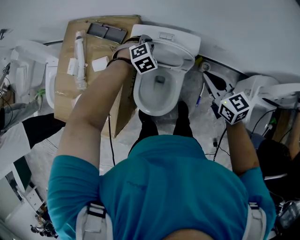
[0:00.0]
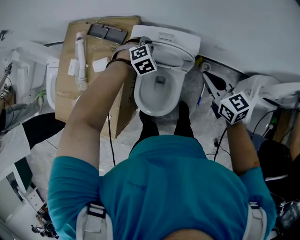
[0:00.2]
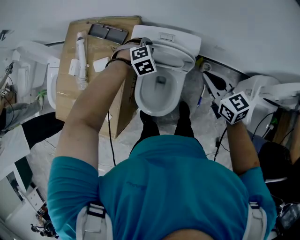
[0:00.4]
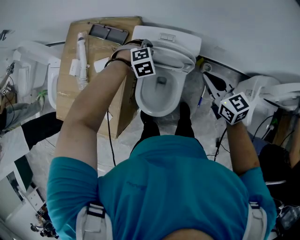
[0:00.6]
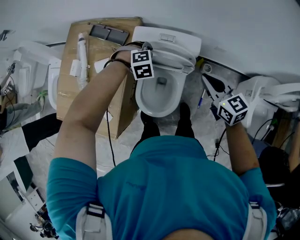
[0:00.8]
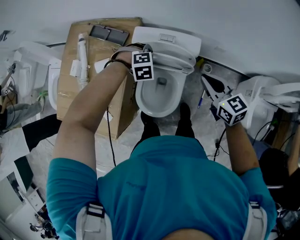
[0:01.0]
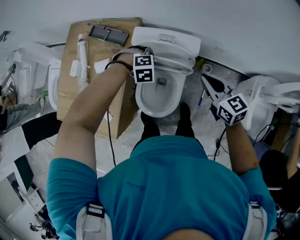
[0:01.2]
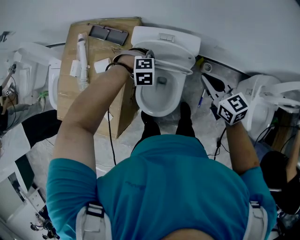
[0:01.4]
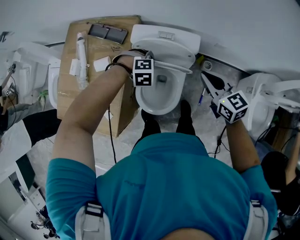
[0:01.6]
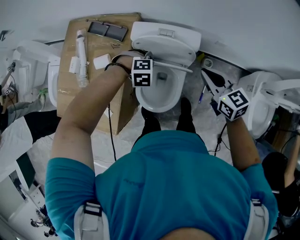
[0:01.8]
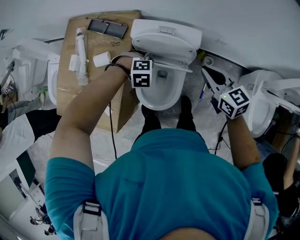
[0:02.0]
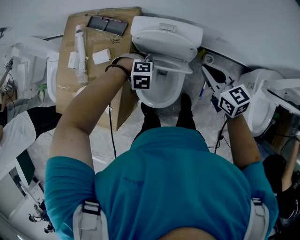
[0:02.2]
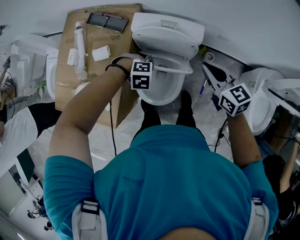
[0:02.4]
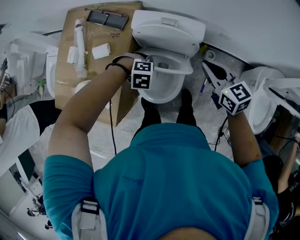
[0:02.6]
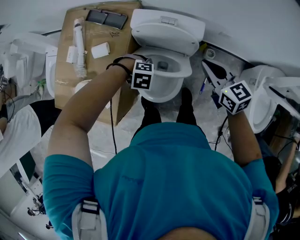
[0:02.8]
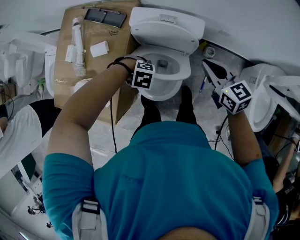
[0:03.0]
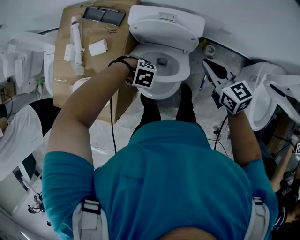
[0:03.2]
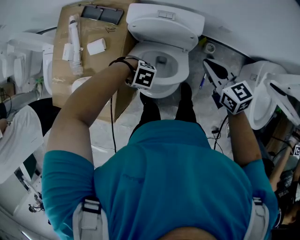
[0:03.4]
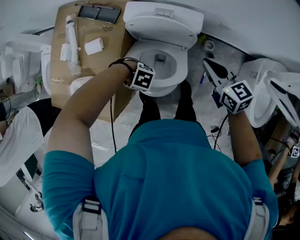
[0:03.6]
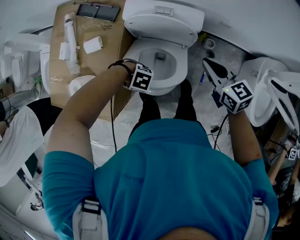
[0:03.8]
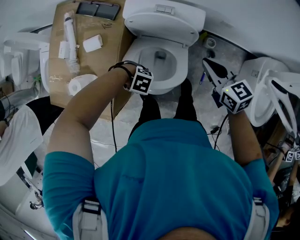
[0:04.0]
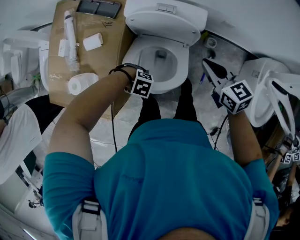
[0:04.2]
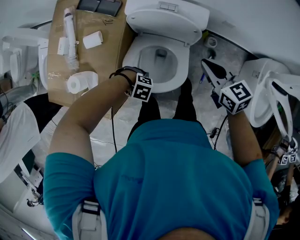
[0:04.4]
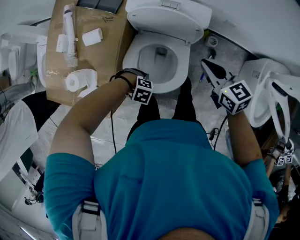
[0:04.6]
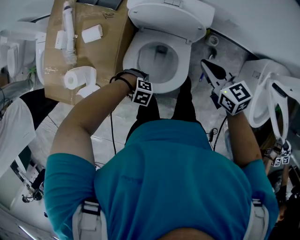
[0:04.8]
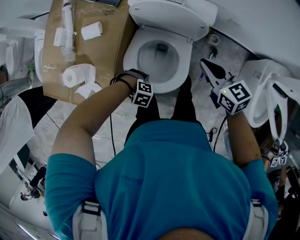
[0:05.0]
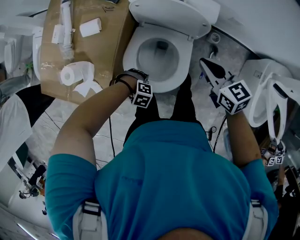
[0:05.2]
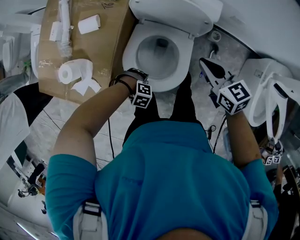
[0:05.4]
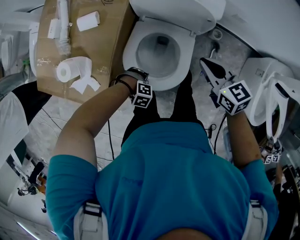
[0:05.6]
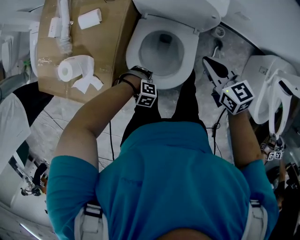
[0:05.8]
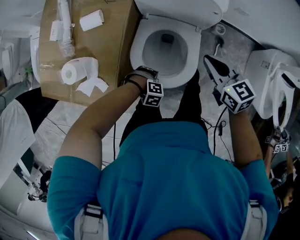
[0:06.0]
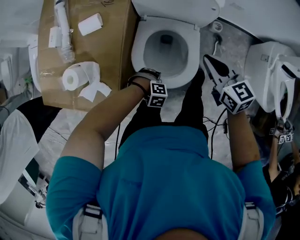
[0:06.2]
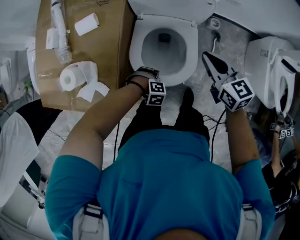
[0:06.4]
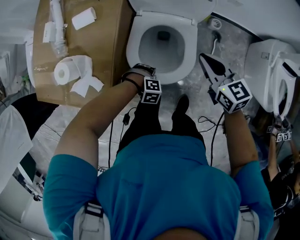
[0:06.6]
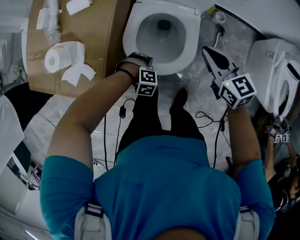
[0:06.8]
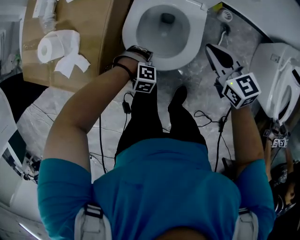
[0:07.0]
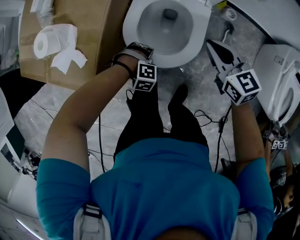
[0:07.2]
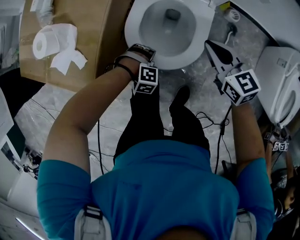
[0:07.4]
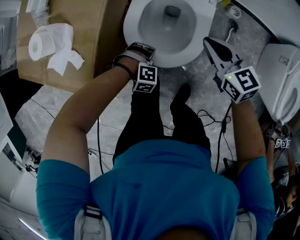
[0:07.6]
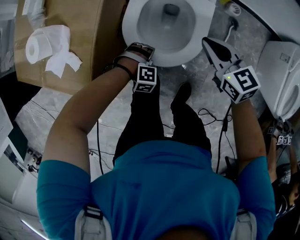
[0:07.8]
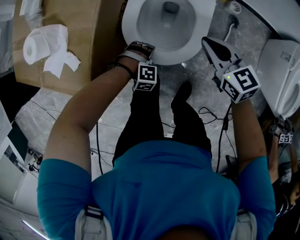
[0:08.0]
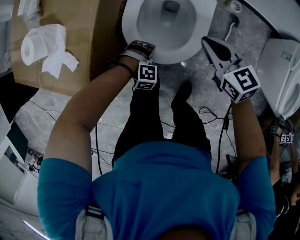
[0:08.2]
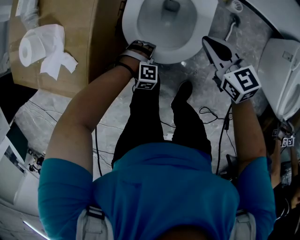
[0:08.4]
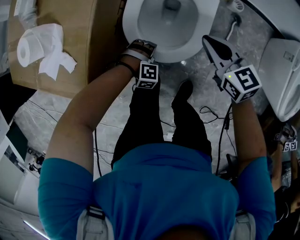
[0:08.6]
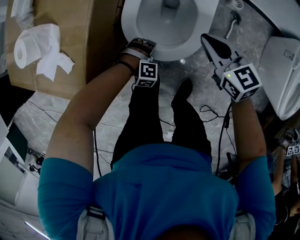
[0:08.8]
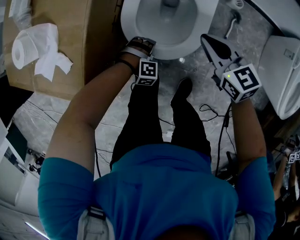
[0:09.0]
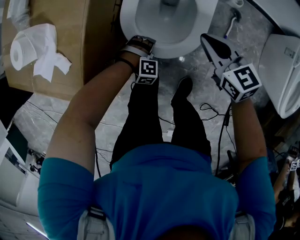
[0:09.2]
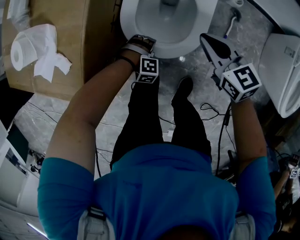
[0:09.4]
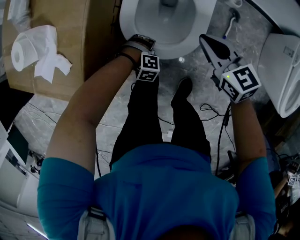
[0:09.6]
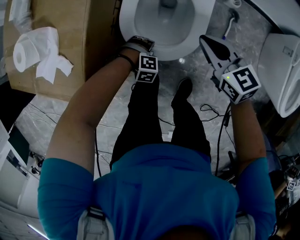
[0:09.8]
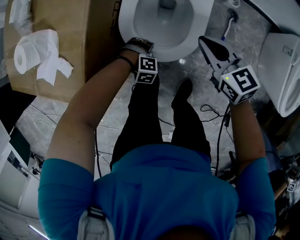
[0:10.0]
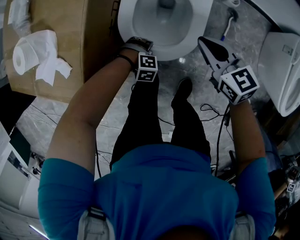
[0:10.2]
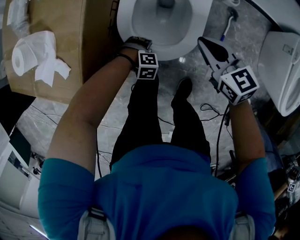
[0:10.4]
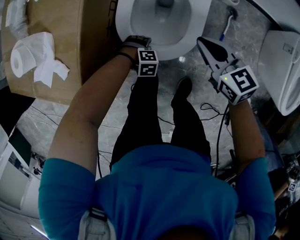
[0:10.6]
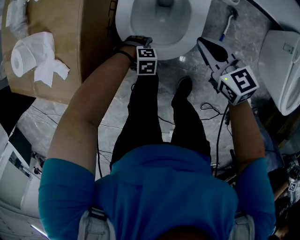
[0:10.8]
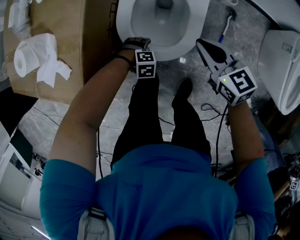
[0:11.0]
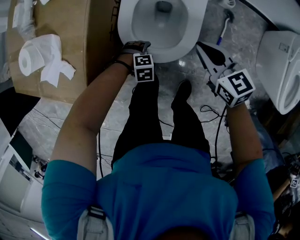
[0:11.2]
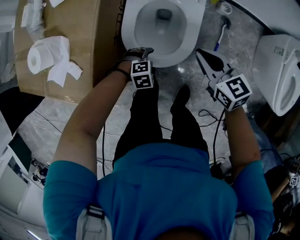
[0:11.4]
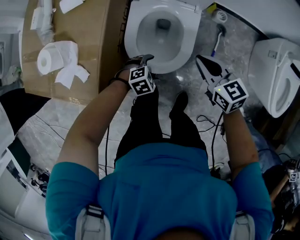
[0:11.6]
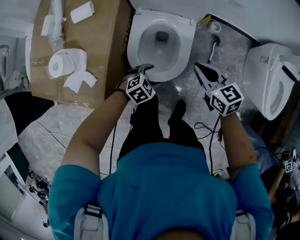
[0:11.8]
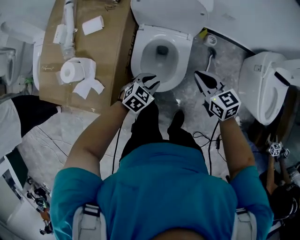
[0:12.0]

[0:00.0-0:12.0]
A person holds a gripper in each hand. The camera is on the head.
0:00.0 to 0:01.6: The left gripper moves roughly 10 cm, and rotates roughly 30 degrees.
0:01.6 to 0:03.0: The left gripper changes place by approximately 15 cm, and changes its angle by some 30 degrees.
0:03.0 to 0:04.4: The right gripper is displaced downward by roughly 5 cm. The left gripper shifts by roughly 15 cm.
0:04.4 to 0:06.0: The left gripper goes roughly 10 cm downward; the right gripper shifts by about 10 cm.
0:06.0 to 0:07.6: The two grippers go approximately 15 cm downward.
0:07.6 to 0:09.0: The right gripper heads downward, covering roughly 5 cm; the left gripper travels downward by roughly 10 cm.
0:09.0 to 0:10.4: The grippers make only small movements.
0:10.4 to 0:12.0: The right gripper moves upward, about 15 cm, while the left gripper moves upward, approximately 30 cm, tilts its fingers about 40 degrees upward, and closes up.

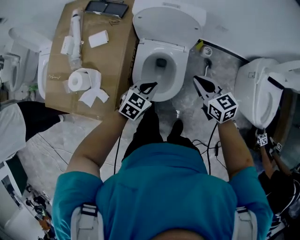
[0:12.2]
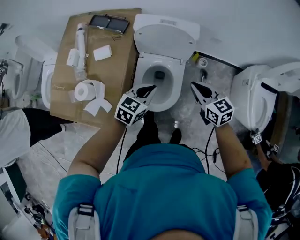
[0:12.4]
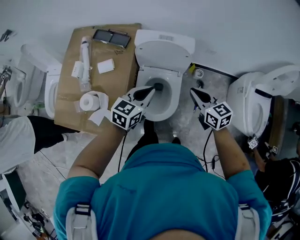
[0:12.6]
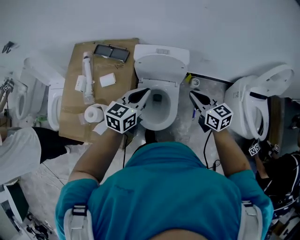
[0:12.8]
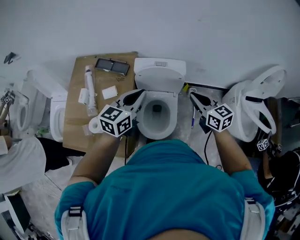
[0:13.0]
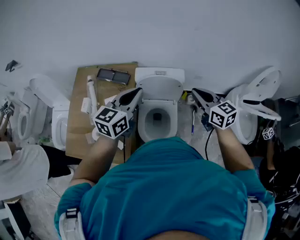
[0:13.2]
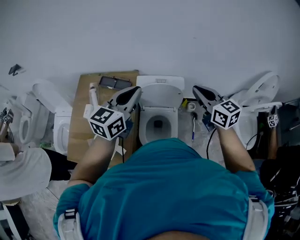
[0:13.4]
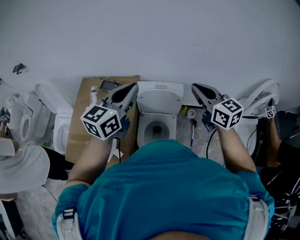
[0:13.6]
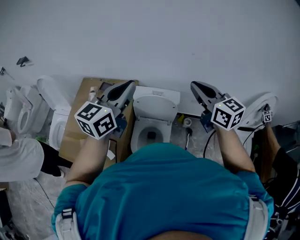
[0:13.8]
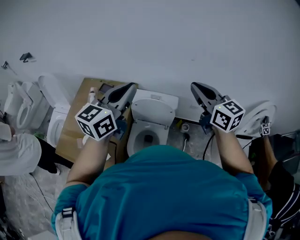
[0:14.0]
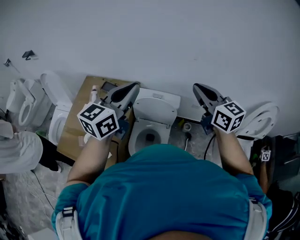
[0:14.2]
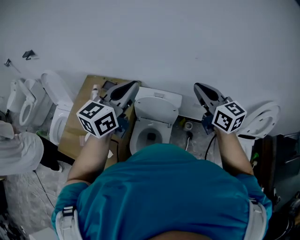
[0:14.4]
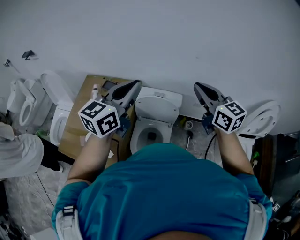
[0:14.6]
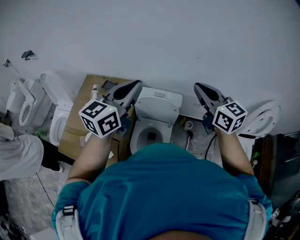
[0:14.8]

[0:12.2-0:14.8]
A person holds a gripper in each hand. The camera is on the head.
0:12.2 to 0:13.4: The grippers both shift upward by approximately 40 cm. The right gripper changes its angle by about 20 degrees; the left gripper tips its fingers upward by some 30 degrees.
0:13.4 to 0:14.8: The left gripper goes approximately 10 cm upward and to the right; the right gripper heads upward, covering approximately 10 cm.

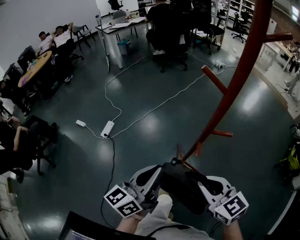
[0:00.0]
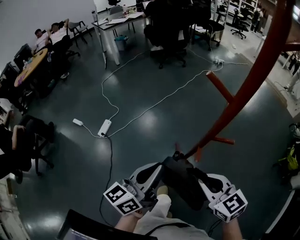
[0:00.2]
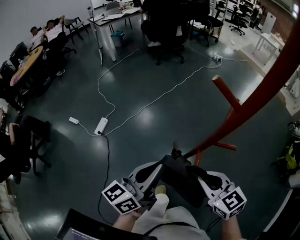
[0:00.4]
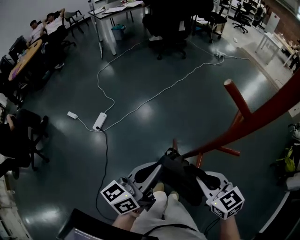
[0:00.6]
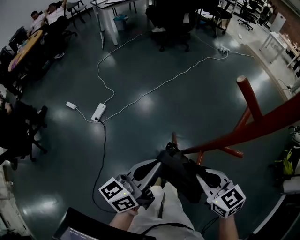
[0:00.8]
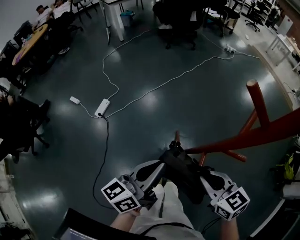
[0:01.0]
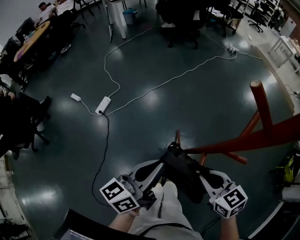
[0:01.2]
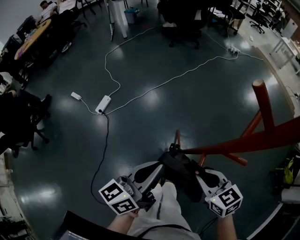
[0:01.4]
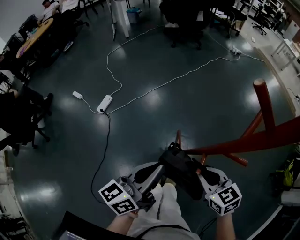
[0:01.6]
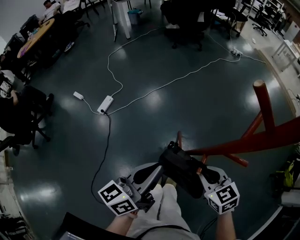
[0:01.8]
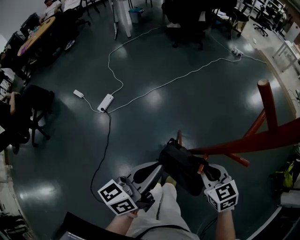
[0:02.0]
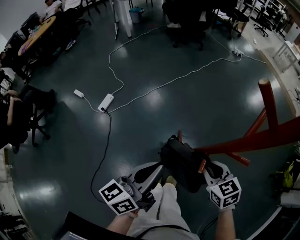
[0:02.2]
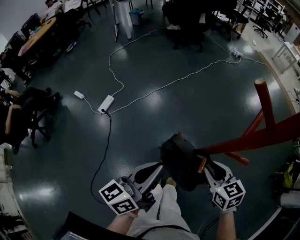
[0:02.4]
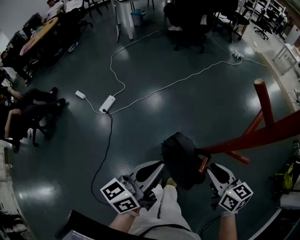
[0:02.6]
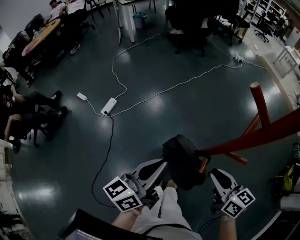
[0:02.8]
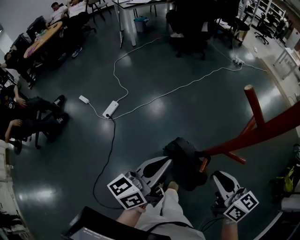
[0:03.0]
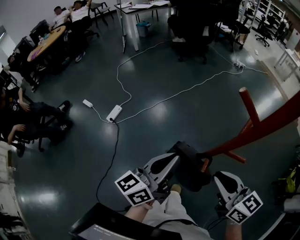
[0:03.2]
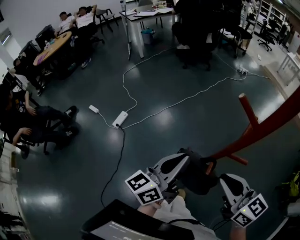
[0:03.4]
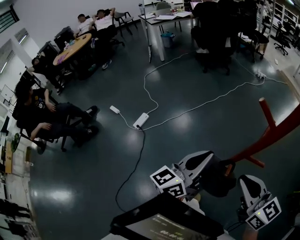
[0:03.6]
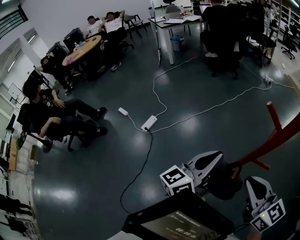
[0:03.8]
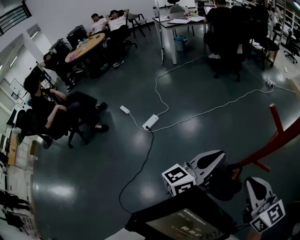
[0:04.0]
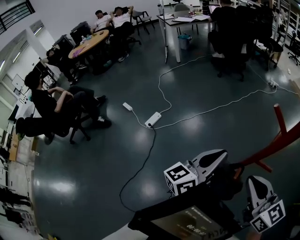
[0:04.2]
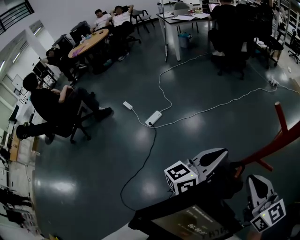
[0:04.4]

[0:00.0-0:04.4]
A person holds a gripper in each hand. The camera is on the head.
0:00.0 to 0:01.4: The grippers both shift forward and downward by roughly 15 cm.
0:01.4 to 0:03.0: The right gripper is displaced upward by about 10 cm, and swivels approximately 30 degrees.
0:03.0 to 0:04.4: The right gripper travels upward and to the left by approximately 15 cm, and rotates approximately 20 degrees; the left gripper shifts approximately 5 cm upward.

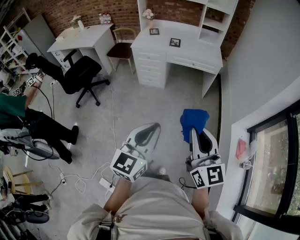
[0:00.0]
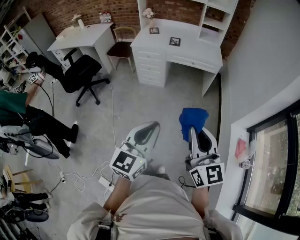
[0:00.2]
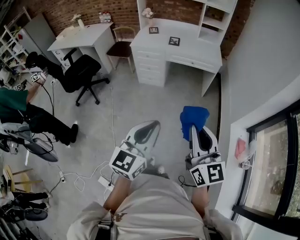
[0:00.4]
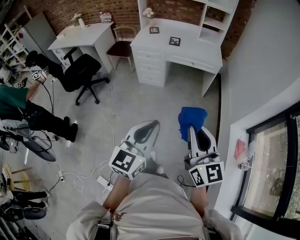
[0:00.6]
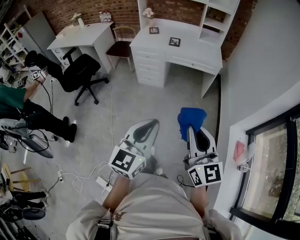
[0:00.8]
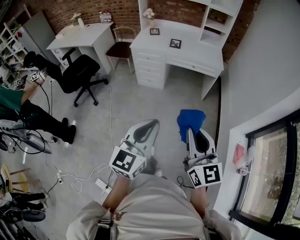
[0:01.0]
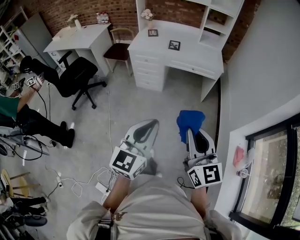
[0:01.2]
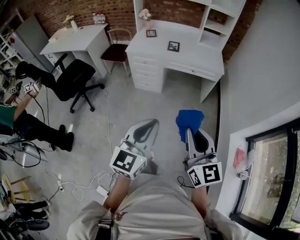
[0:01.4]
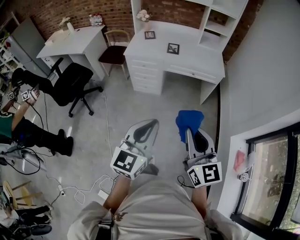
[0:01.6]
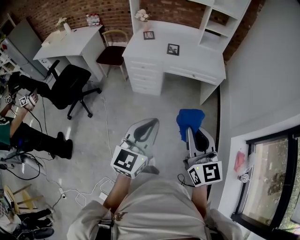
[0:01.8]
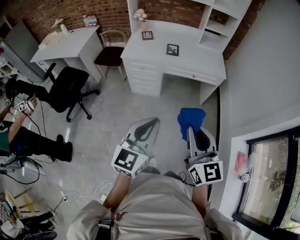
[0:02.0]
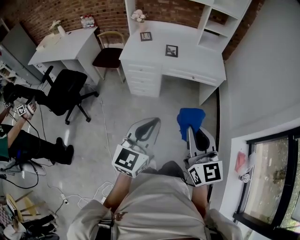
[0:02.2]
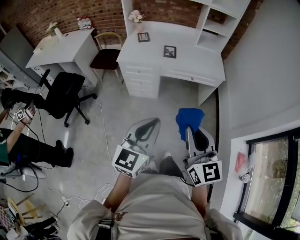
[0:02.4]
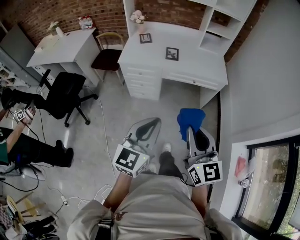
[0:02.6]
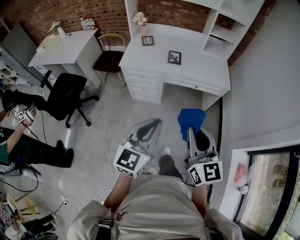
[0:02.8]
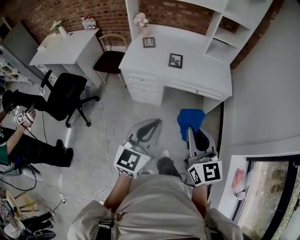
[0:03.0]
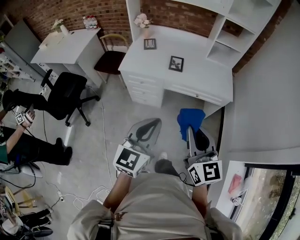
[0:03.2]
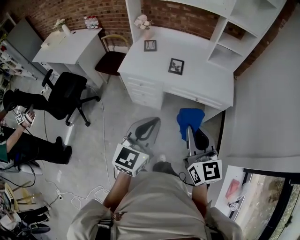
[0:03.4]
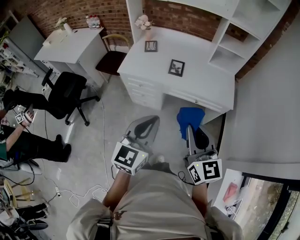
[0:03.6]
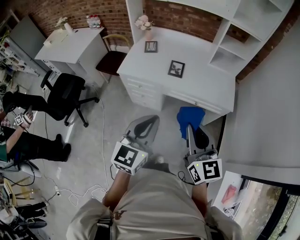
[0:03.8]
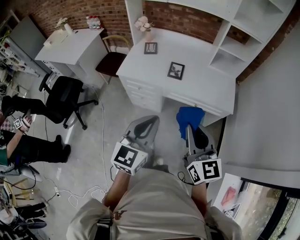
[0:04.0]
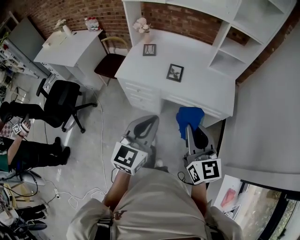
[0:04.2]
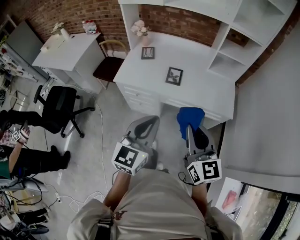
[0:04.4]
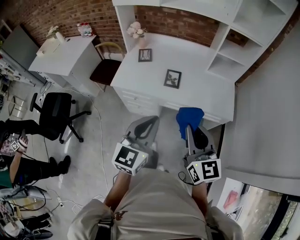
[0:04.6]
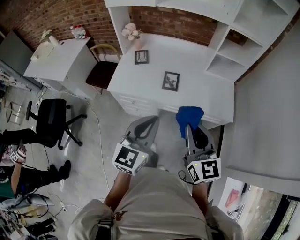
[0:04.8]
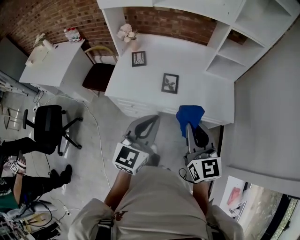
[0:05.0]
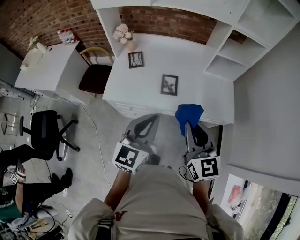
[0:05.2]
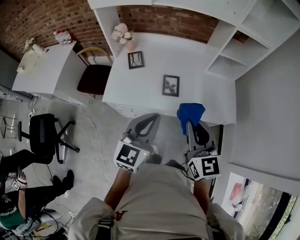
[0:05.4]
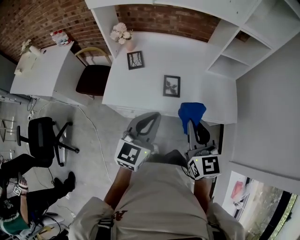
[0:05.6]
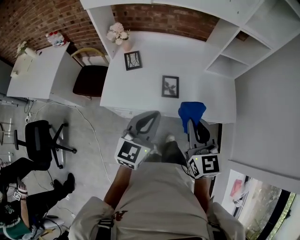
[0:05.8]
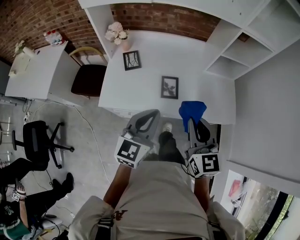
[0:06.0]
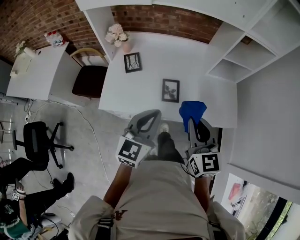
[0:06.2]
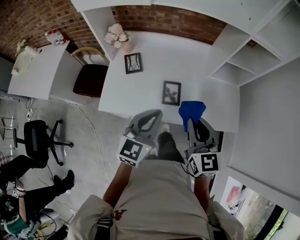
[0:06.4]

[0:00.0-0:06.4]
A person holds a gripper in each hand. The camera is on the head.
0:00.0 to 0:01.6: Both grippers travel together forward, some 20 cm.
0:01.6 to 0:03.2: The two grippers go roughly 25 cm forward.
0:03.2 to 0:04.8: The two grippers go about 20 cm forward.
0:04.8 to 0:06.4: Both grippers move forward, about 20 cm.
